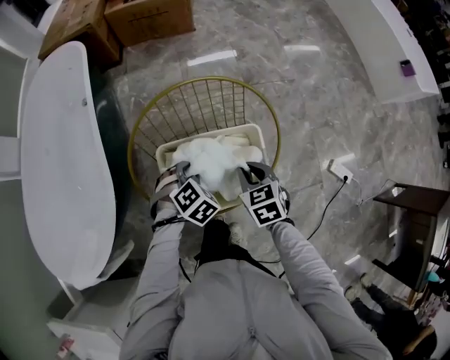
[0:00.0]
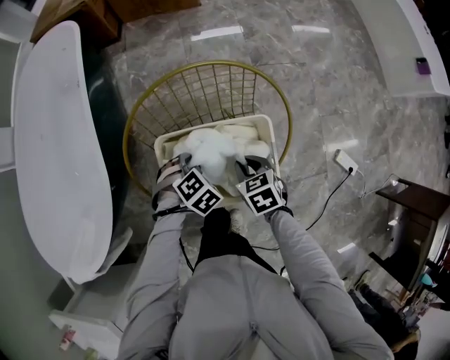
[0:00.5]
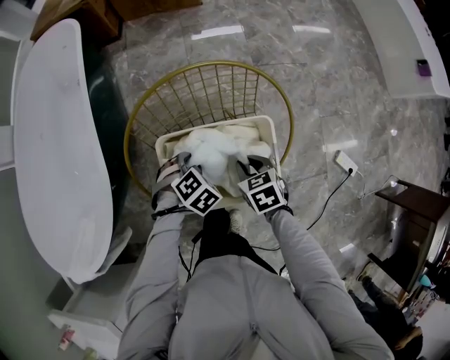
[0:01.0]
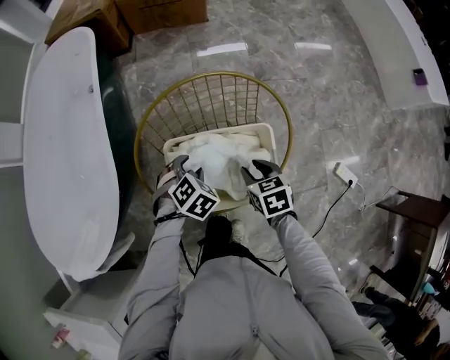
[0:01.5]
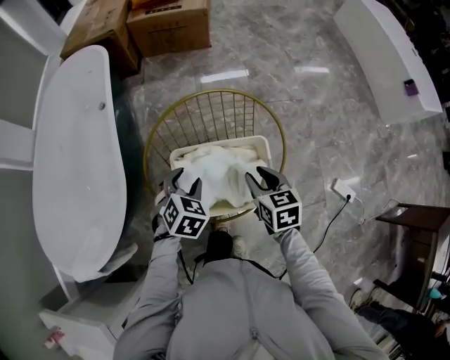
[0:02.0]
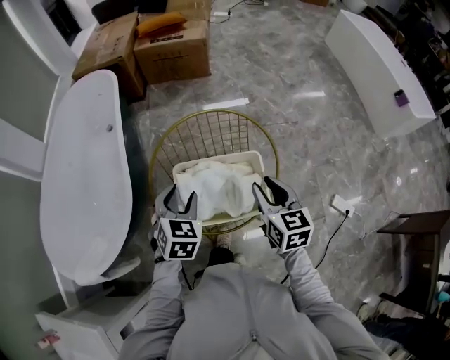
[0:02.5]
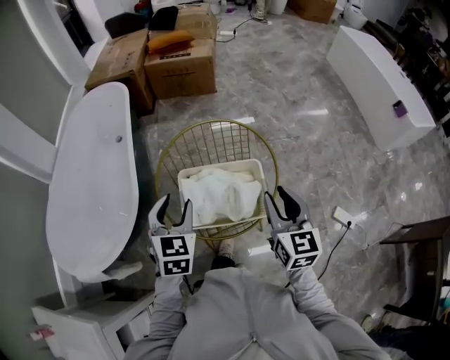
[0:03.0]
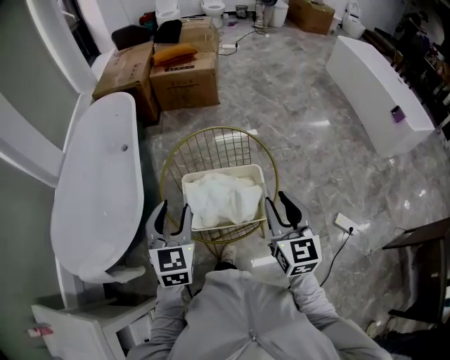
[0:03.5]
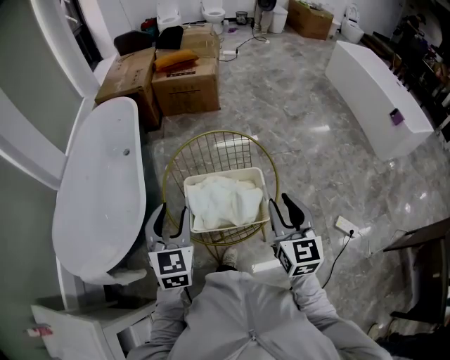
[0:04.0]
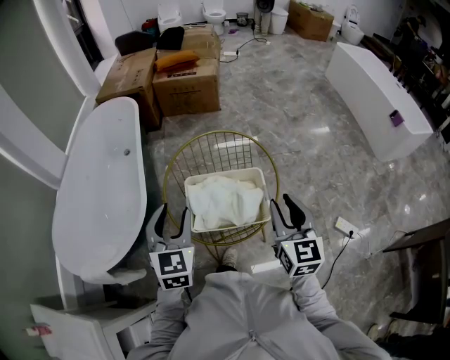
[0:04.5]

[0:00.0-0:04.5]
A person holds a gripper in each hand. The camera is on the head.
0:00.0 to 0:02.0: The grippers both shift upward by roughly 5 cm. The left gripper turns by some 30 degrees.
0:02.0 to 0:04.5: Both grippers move upward and backward, some 25 cm. The right gripper angles its fingers upward, by roughly 30 degrees. The left gripper tips its fingers upward by about 40 degrees.

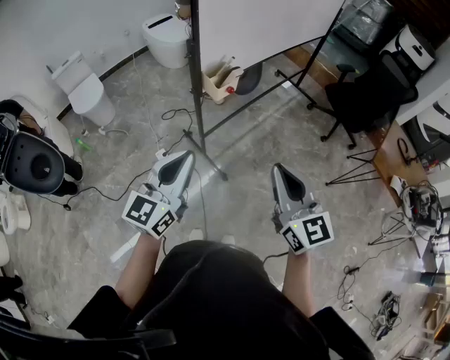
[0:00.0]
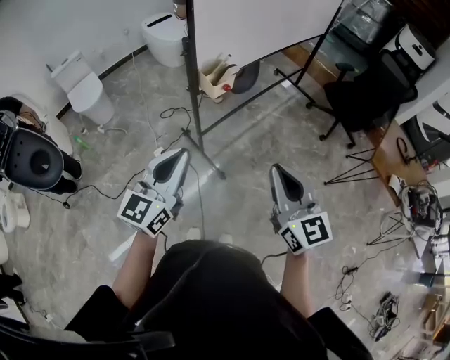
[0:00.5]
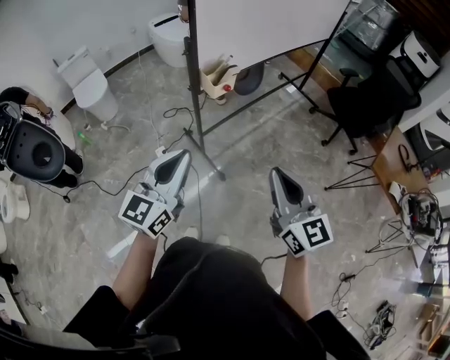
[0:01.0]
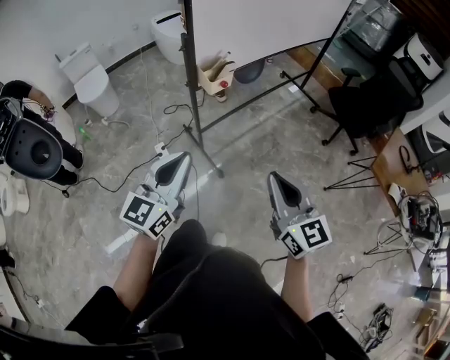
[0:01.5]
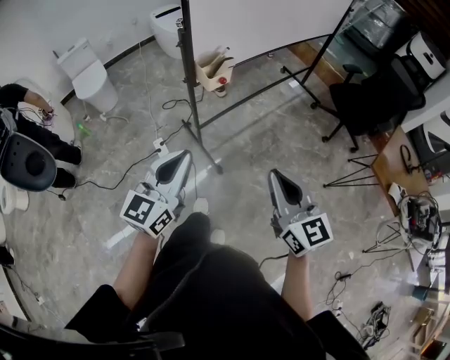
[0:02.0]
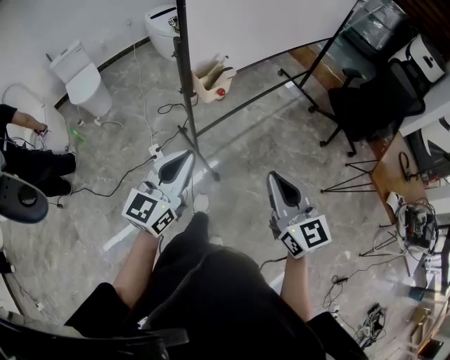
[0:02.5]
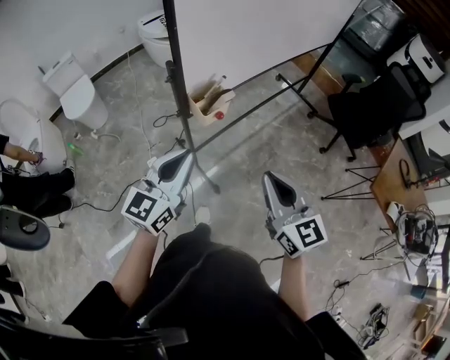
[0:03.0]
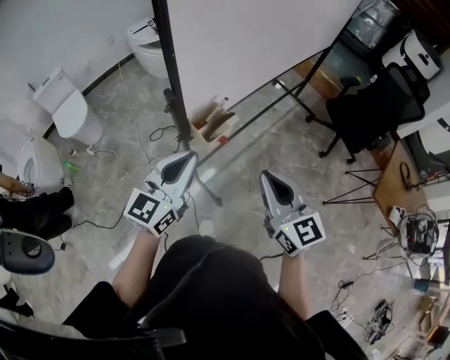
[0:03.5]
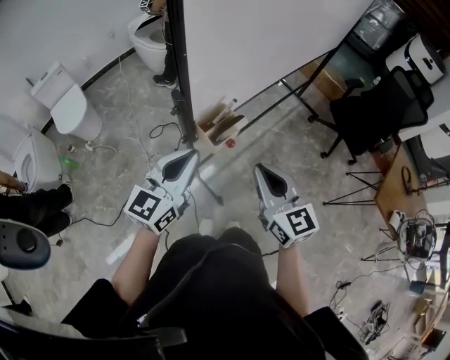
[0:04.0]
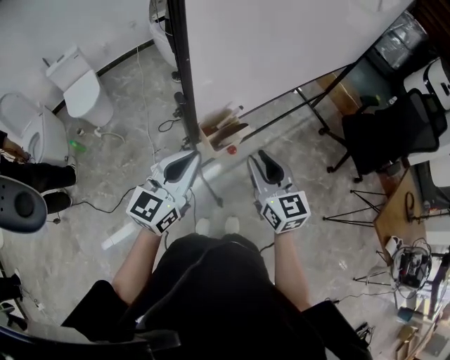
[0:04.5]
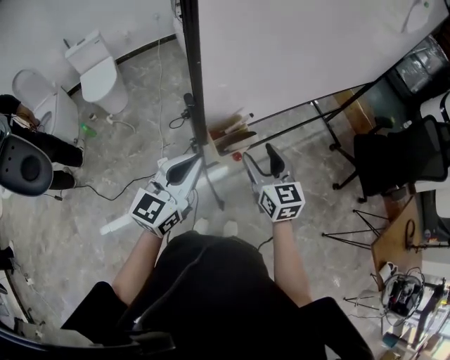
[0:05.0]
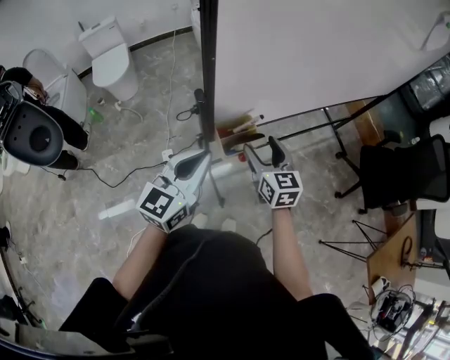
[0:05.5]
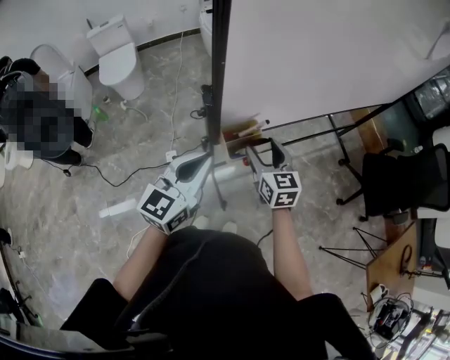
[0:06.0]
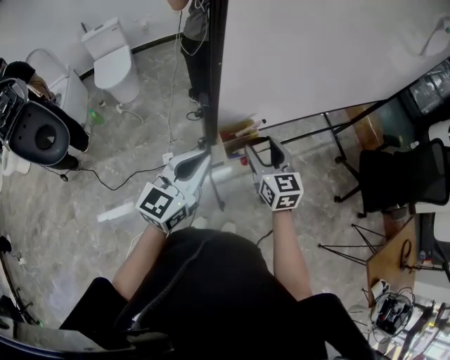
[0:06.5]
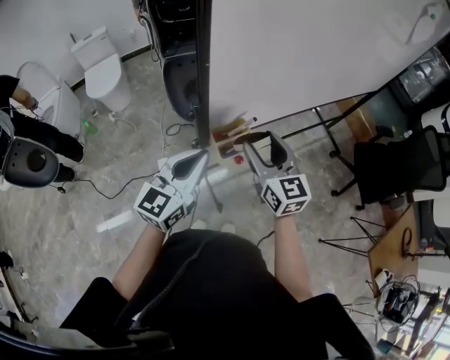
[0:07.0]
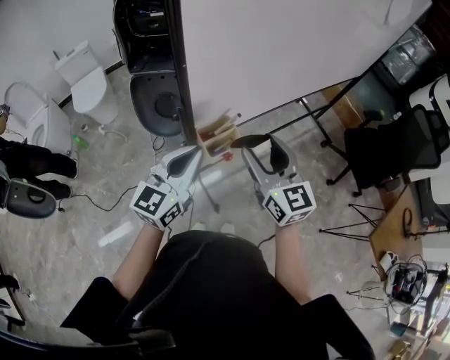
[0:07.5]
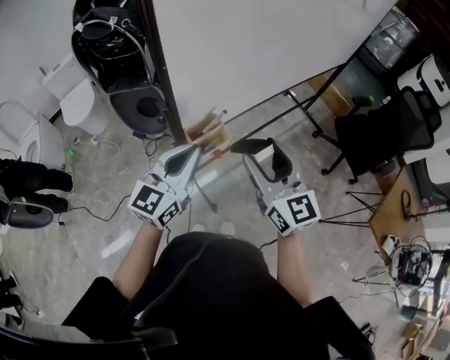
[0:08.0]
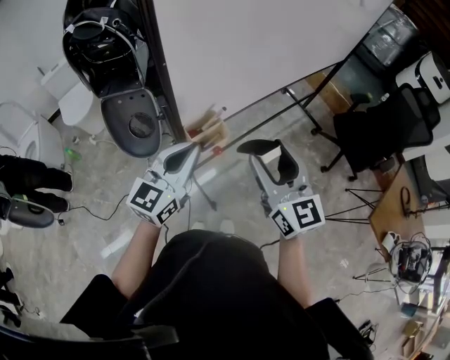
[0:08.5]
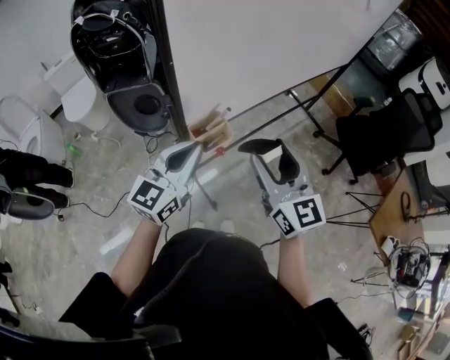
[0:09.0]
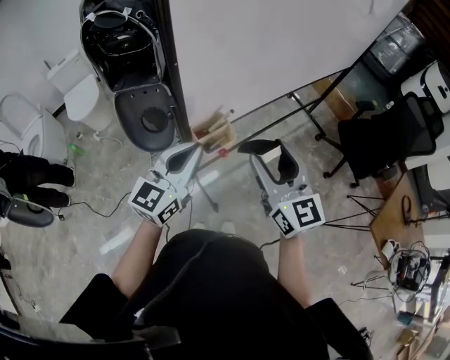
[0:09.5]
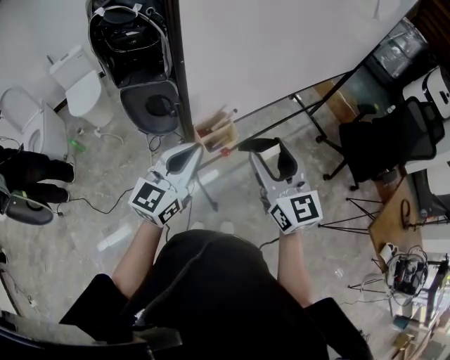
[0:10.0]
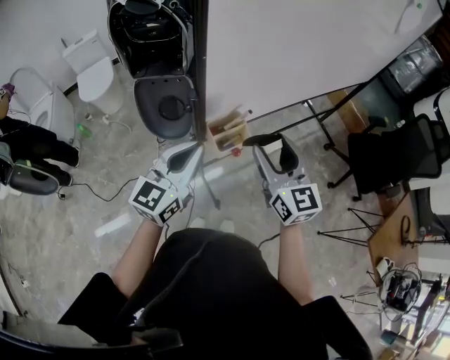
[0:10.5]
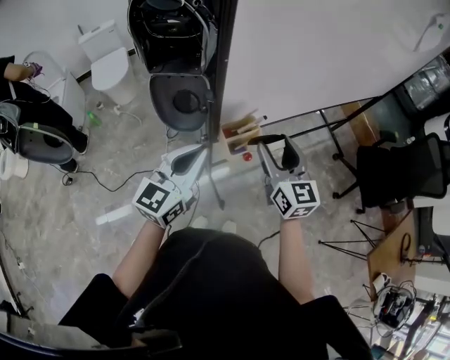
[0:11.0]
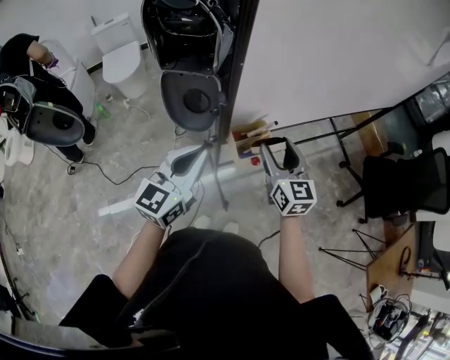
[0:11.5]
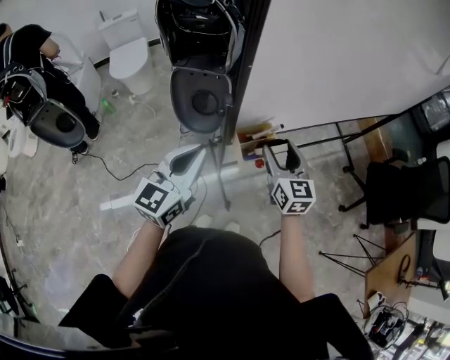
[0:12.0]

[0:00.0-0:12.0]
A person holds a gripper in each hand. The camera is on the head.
0:00.0 to 0:02.0: Both grippers move to the right, about 5 cm.
0:02.0 to 0:04.0: The grippers both shift forward by approximately 30 cm.
0:04.0 to 0:06.0: The right gripper is displaced forward and downward by roughly 20 cm, and opens up.
0:06.0 to 0:08.0: The left gripper changes place by about 5 cm, while the right gripper moves upward, backward and to the right, approximately 20 cm, and swivels about 20 degrees.
0:08.0 to 0:10.0: The grippers make only small movements.
0:10.0 to 0:12.0: The right gripper heads downward, forward and to the left, covering roughly 15 cm. Meanwhile the left gripper travels to the left by approximately 10 cm.

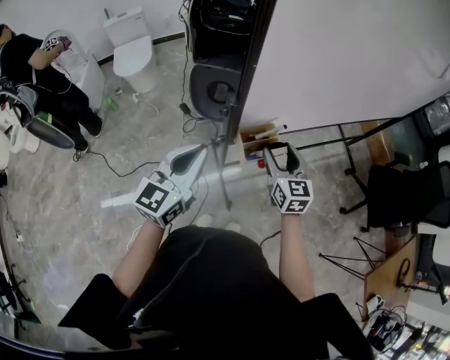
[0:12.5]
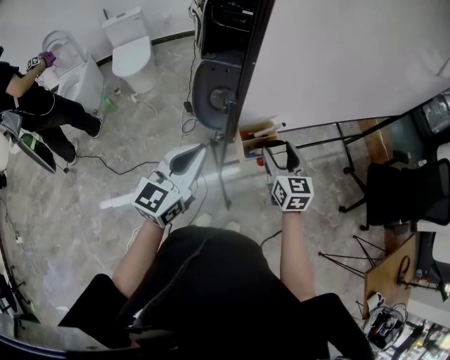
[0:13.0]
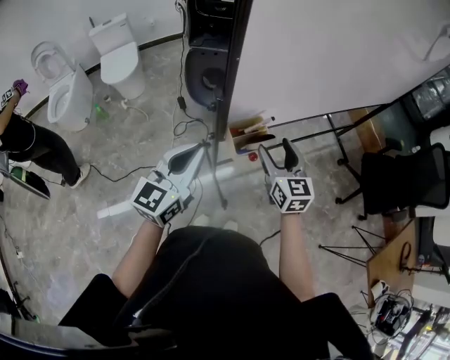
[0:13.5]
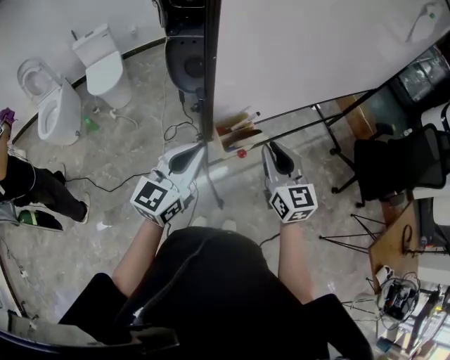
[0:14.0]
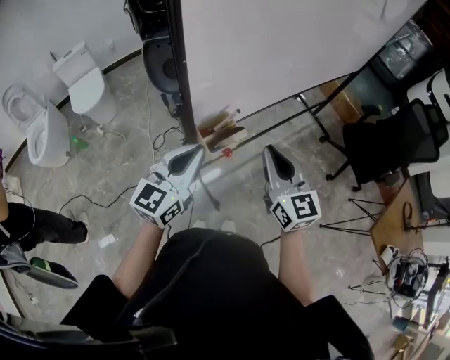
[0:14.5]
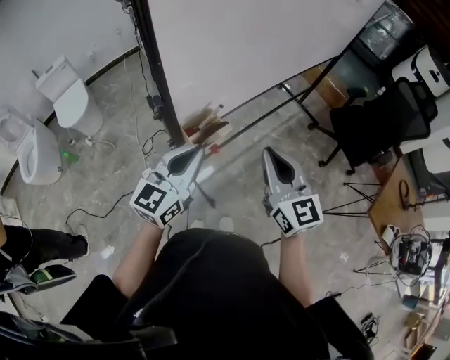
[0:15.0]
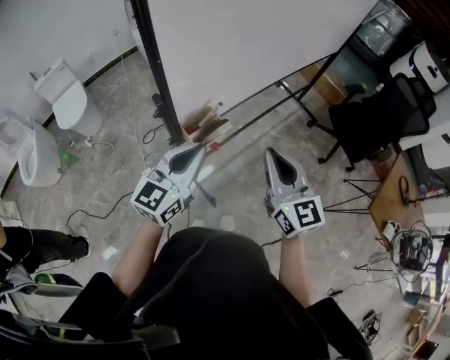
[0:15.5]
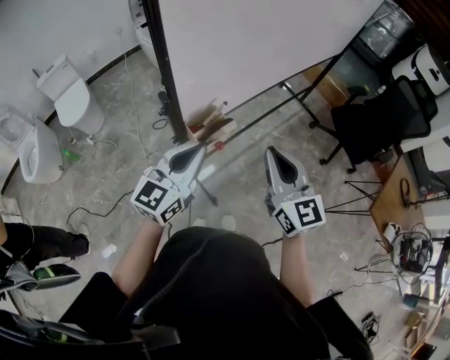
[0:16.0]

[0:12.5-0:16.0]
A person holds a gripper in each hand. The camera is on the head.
0:12.5 to 0:14.5: The left gripper heads to the right, covering approximately 10 cm. Meanwhile the right gripper travels upward, backward and to the right by roughly 15 cm, and closes up.
0:14.5 to 0:16.0: The right gripper ends up roughly 5 cm from where it was.

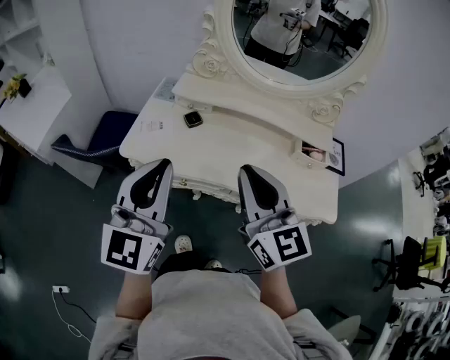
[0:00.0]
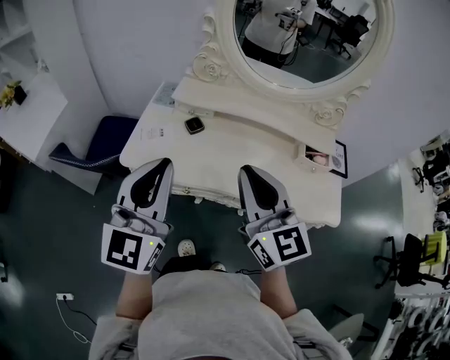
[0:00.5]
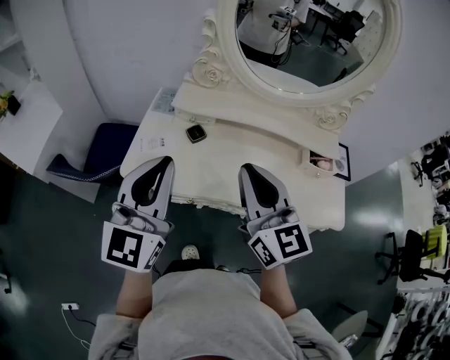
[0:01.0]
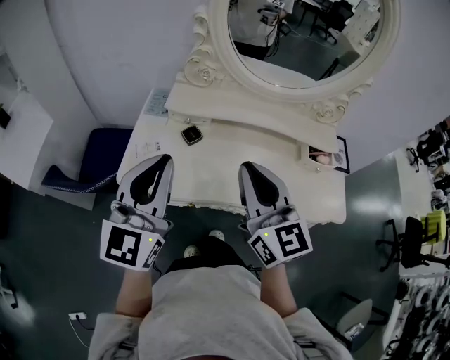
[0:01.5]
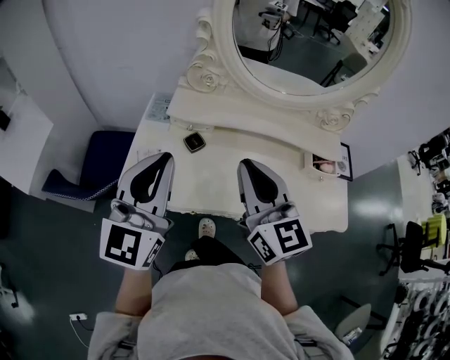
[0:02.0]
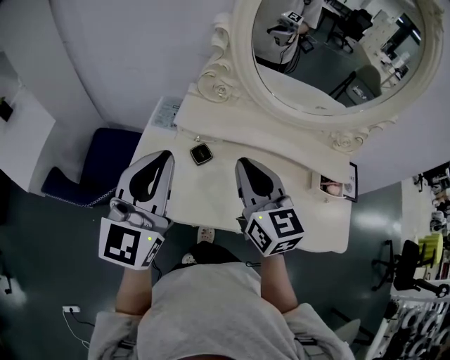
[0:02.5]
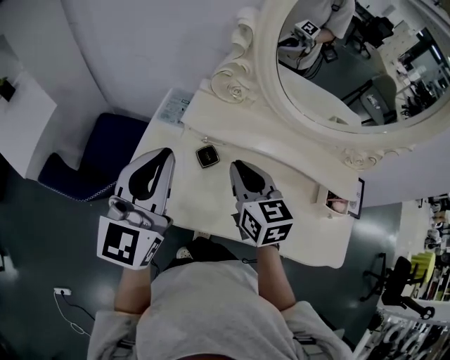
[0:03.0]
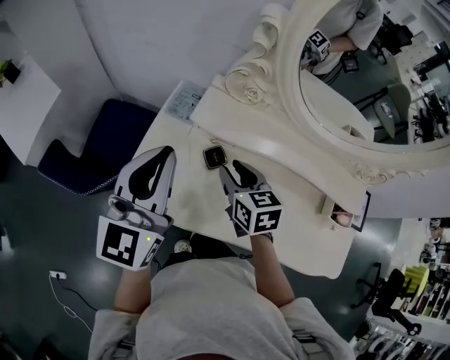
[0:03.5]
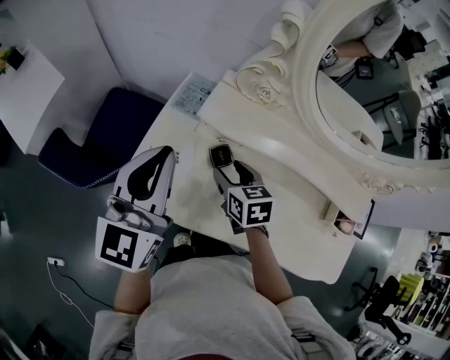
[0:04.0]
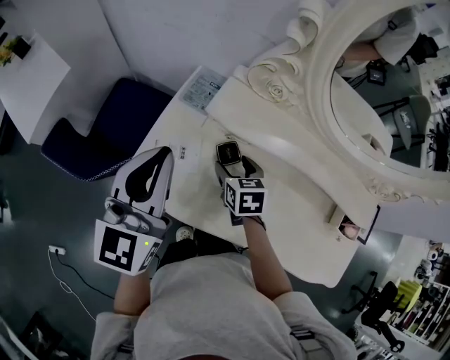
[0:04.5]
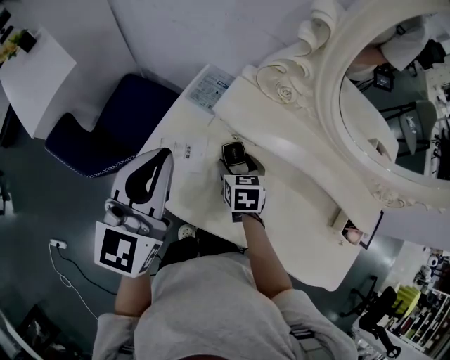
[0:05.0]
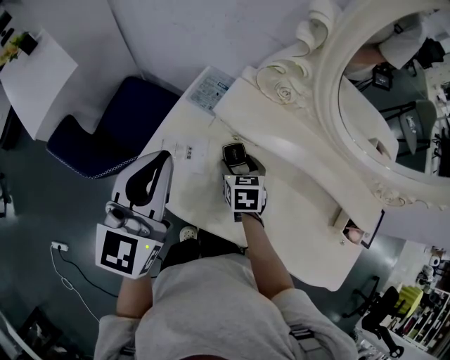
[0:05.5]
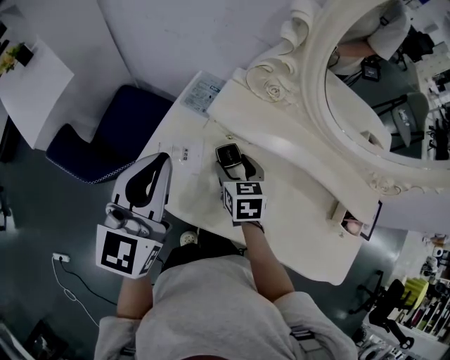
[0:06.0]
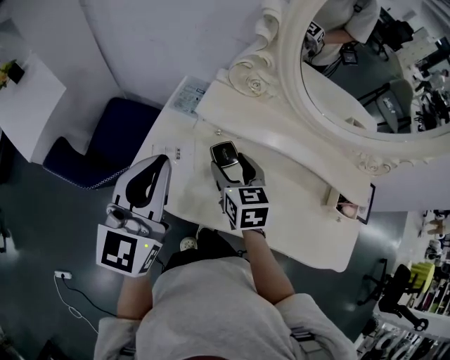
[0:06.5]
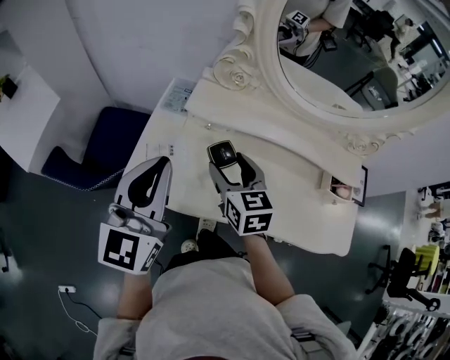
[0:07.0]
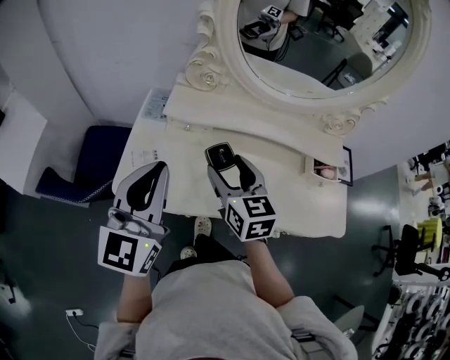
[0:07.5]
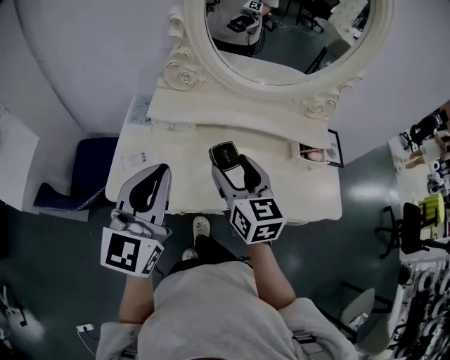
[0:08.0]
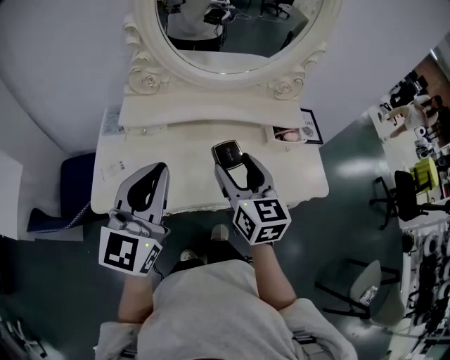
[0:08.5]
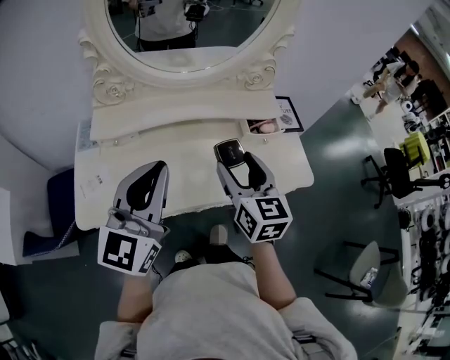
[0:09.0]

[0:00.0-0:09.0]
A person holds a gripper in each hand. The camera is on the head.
0:00.0 to 0:02.0: The two grippers go some 15 cm forward.
0:02.0 to 0:04.5: The right gripper goes approximately 35 cm downward and forward, points its fingers some 50 degrees further downward, and opens its fingers. The left gripper heads forward, downward and to the left, covering approximately 15 cm, and swivels roughly 20 degrees.
0:04.5 to 0:07.0: The right gripper shifts approximately 15 cm upward and backward, and turns by about 20 degrees, while the left gripper moves backward, approximately 10 cm.
0:07.0 to 0:09.0: The left gripper moves some 25 cm, and rotates roughly 30 degrees, while the right gripper changes place by approximately 30 cm, and changes its angle by some 30 degrees.
